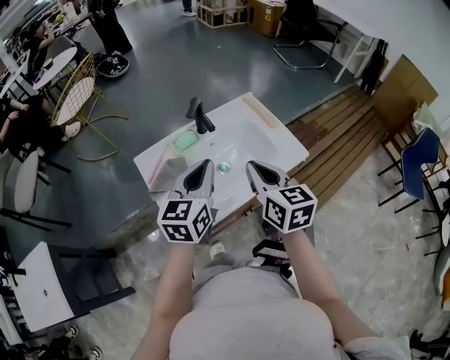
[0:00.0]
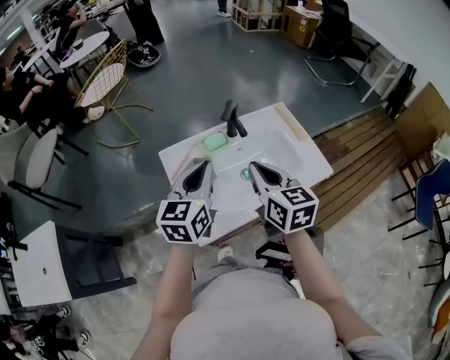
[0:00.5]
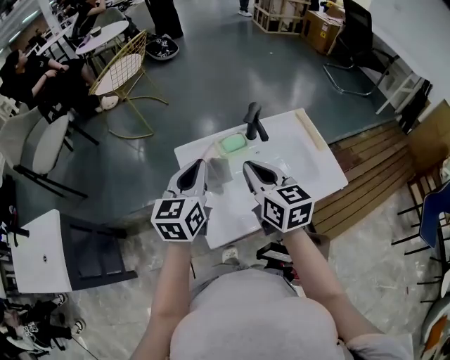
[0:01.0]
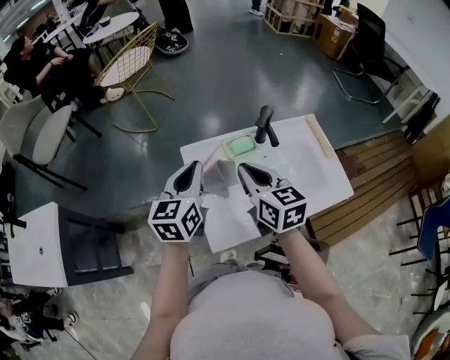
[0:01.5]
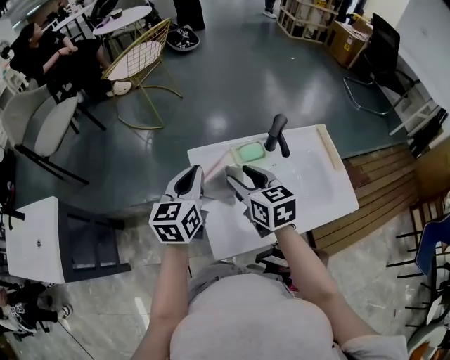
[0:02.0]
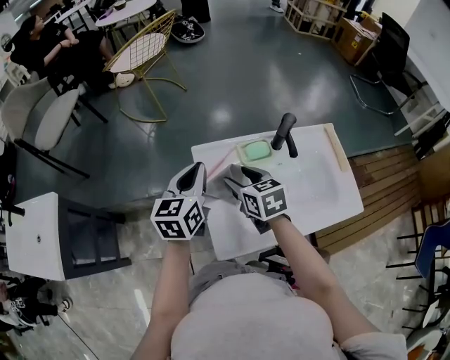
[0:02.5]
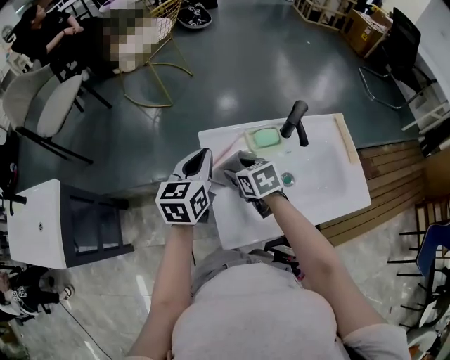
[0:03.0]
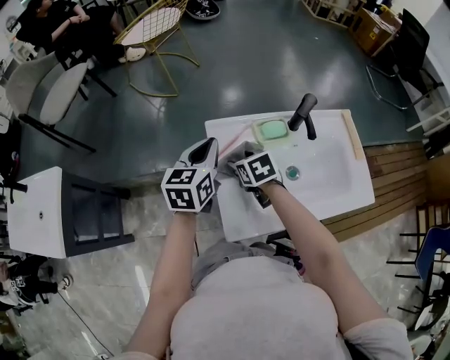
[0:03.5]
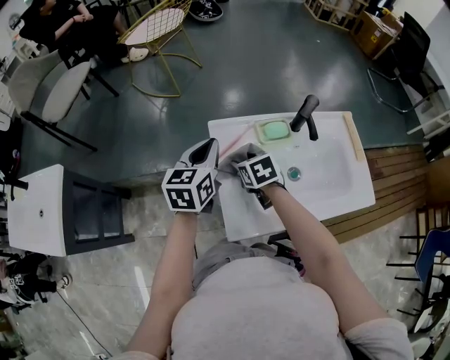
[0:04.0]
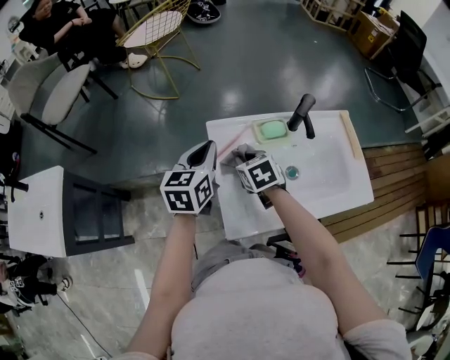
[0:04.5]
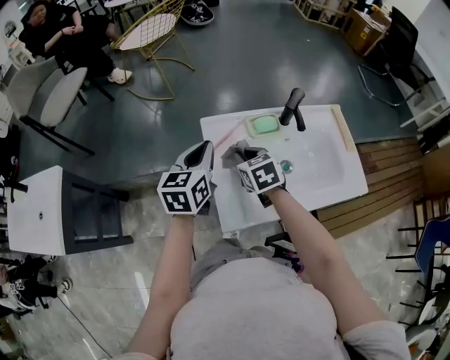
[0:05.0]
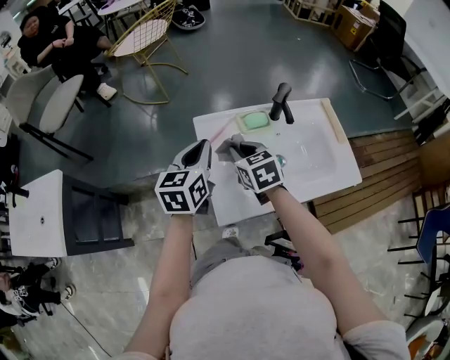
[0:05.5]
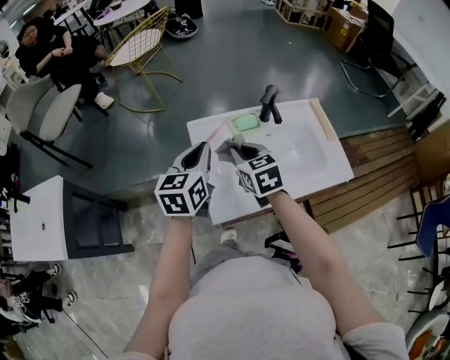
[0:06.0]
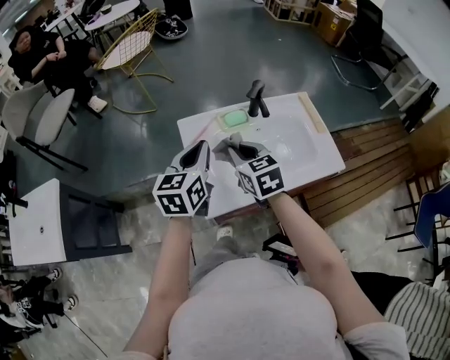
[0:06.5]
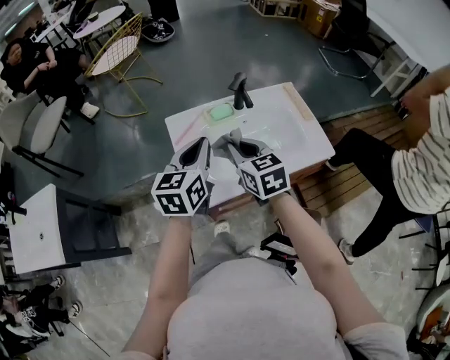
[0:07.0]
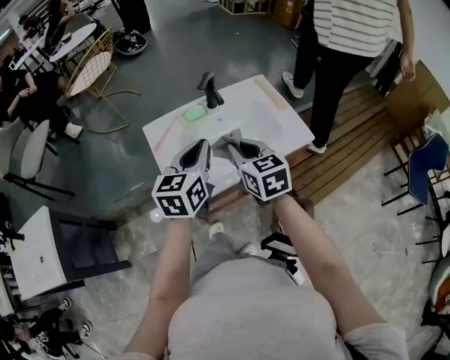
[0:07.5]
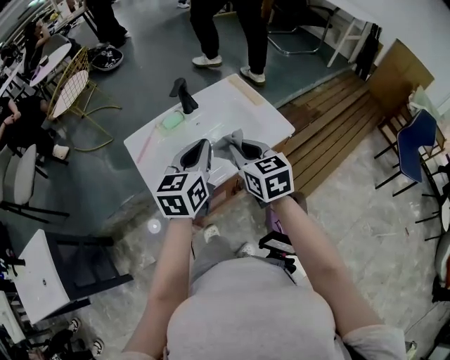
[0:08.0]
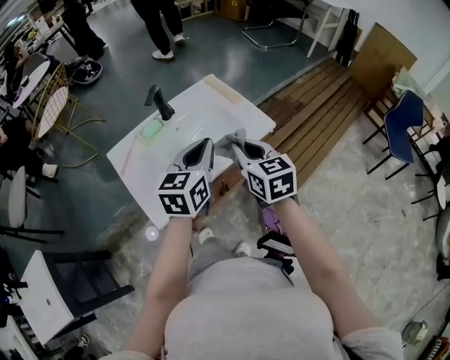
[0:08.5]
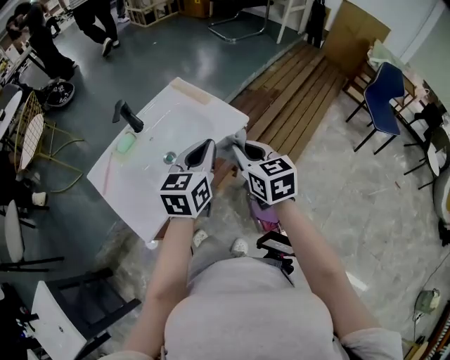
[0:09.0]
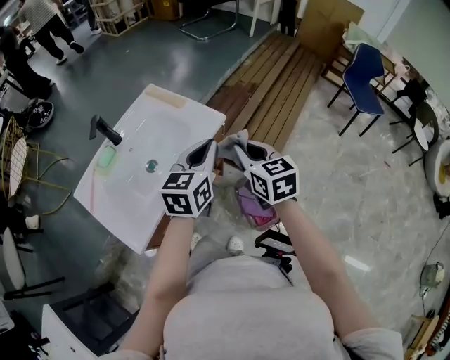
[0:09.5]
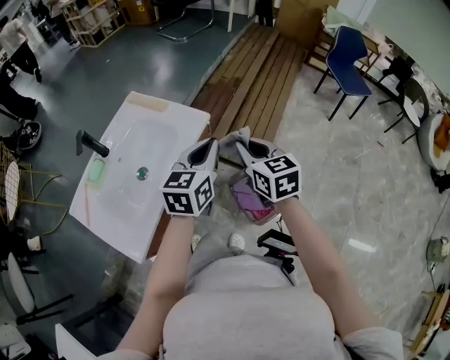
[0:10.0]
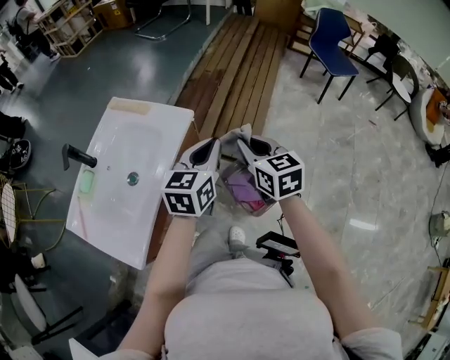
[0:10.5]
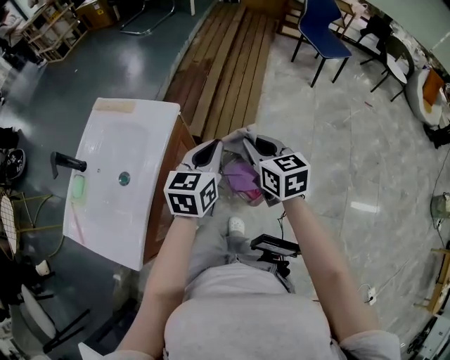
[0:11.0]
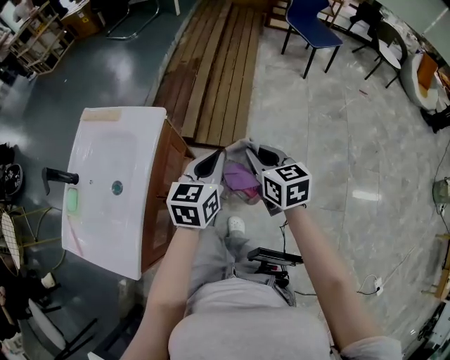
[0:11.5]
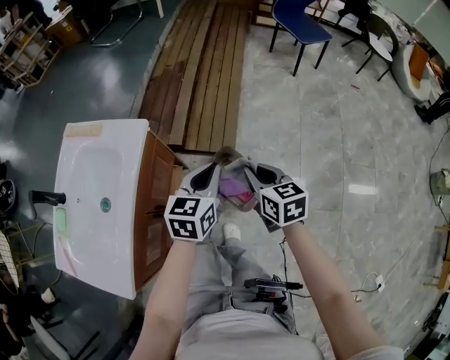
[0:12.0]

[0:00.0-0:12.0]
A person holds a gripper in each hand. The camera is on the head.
0.0 to 2.0 s: The right gripper shifts by approximately 25 cm, rotates approximately 30 degrees, and opens up. Meanwhile the left gripper moves roughly 25 cm, and rotates about 20 degrees.
2.0 to 4.0 s: The left gripper changes place by some 5 cm; the right gripper moves downward, approximately 15 cm, and turns by about 30 degrees.
4.0 to 6.0 s: The right gripper travels upward and backward by roughly 15 cm, swivels some 20 degrees, and closes. Meanwhile the left gripper moves backward and upward, roughly 10 cm.
6.0 to 8.0 s: The right gripper travels to the right and backward by roughly 25 cm, and changes its angle by approximately 20 degrees. Meanwhile the left gripper shifts about 20 cm to the right, and rotates about 20 degrees.
8.0 to 10.0 s: The right gripper ends up approximately 25 cm from where it was, and turns by roughly 30 degrees; the left gripper moves some 25 cm, and swivels some 30 degrees.
10.0 to 12.0 s: Both grippers travel together to the right and downward, approximately 20 cm. The left gripper turns by some 20 degrees. Meanwhile the right gripper swivels some 20 degrees.

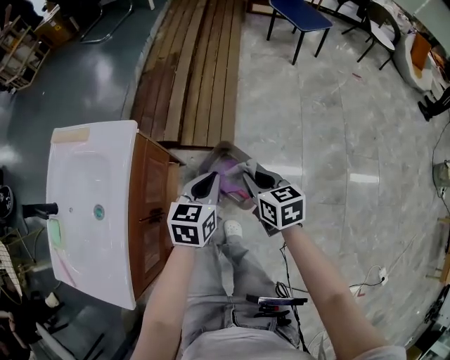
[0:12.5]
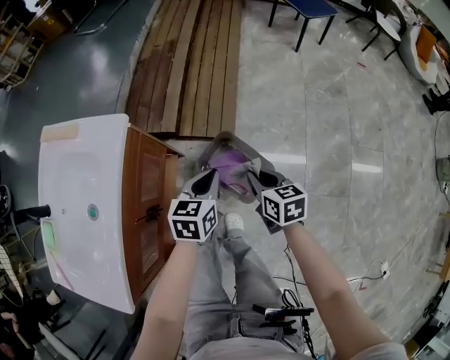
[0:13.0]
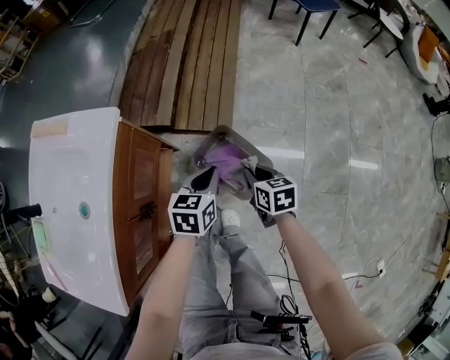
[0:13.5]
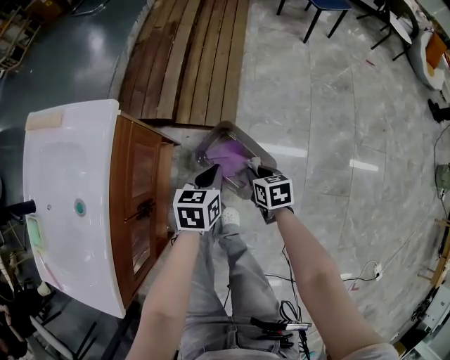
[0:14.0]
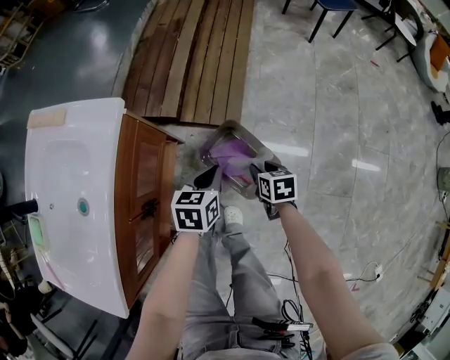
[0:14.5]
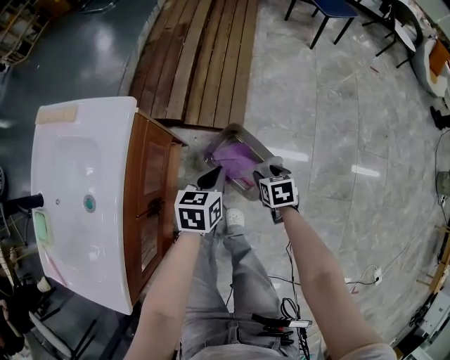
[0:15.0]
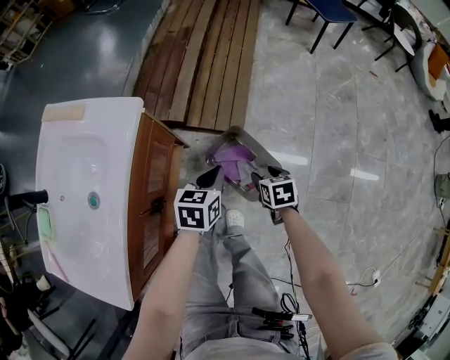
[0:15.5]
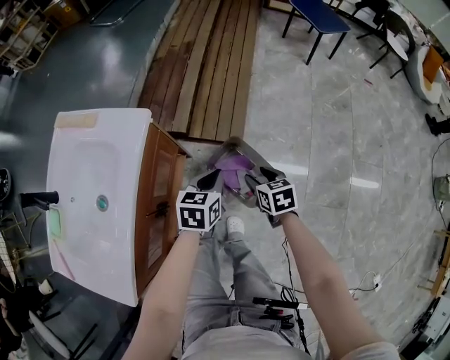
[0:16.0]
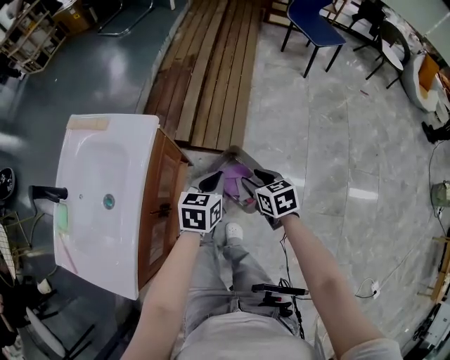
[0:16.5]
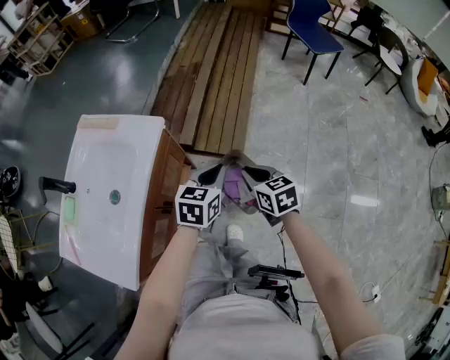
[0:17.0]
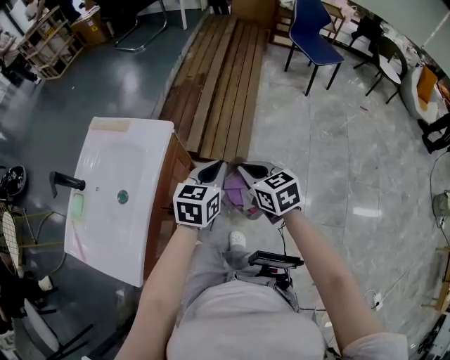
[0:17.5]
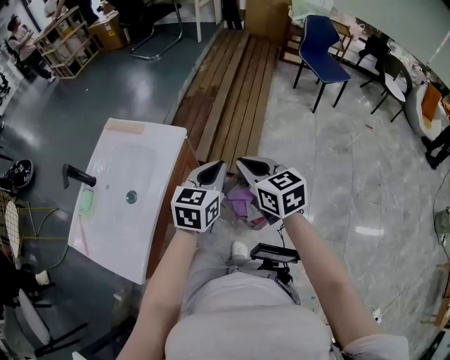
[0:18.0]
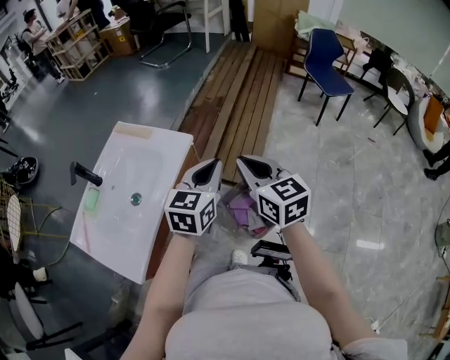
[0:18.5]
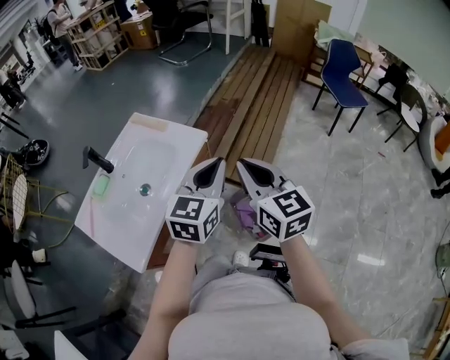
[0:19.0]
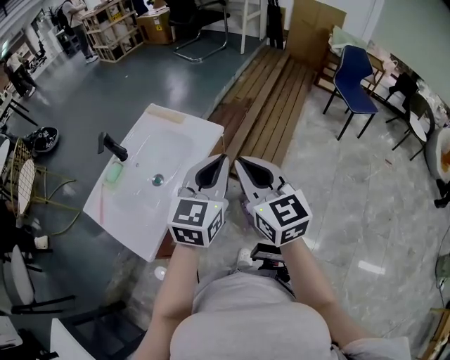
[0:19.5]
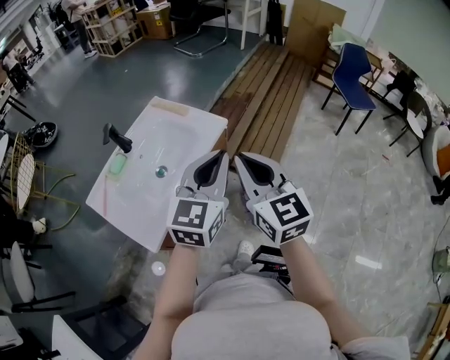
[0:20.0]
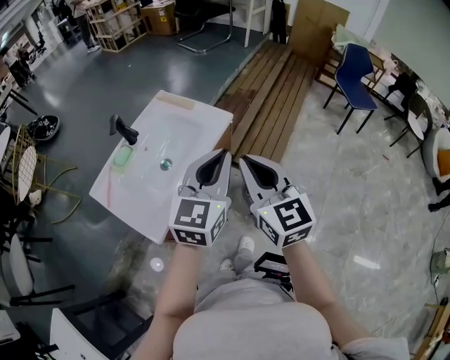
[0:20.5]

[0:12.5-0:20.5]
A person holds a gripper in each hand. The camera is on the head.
12.5 to 14.5 s: The grippers both shift downward by roughly 20 cm. The right gripper turns by approximately 20 degrees, and opens its fingers.
14.5 to 16.5 s: The grippers both shift upward by about 15 cm.
16.5 to 18.5 s: The grippers both shift upward by some 25 cm. The right gripper tips its fingers upward by about 30 degrees, and closes up. The left gripper turns by approximately 30 degrees.
18.5 to 20.5 s: Both grippers travel together to the left, backward and upward, approximately 20 cm.

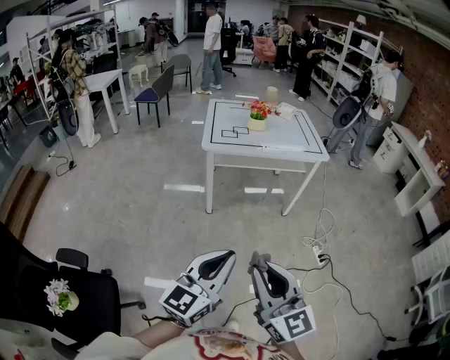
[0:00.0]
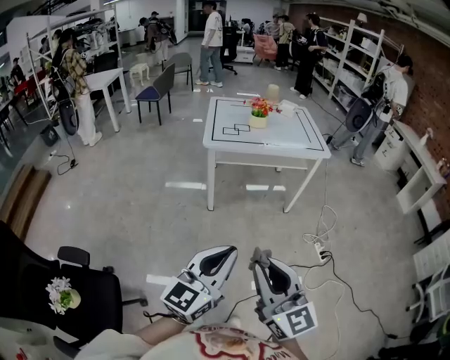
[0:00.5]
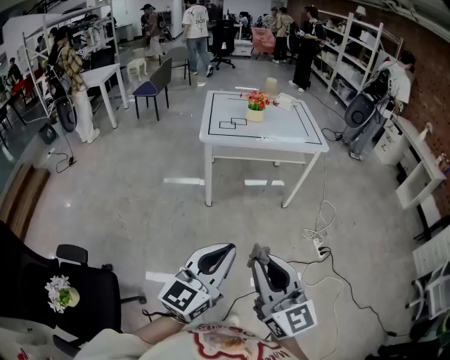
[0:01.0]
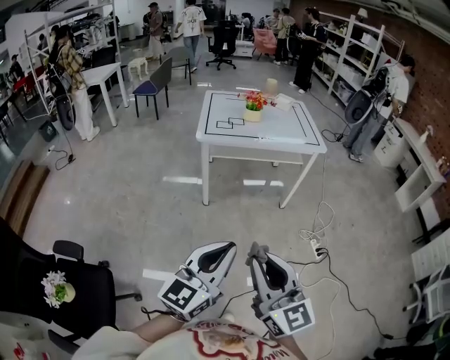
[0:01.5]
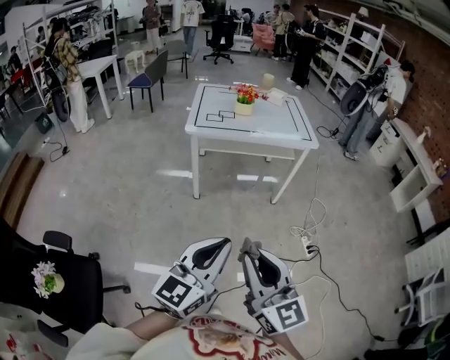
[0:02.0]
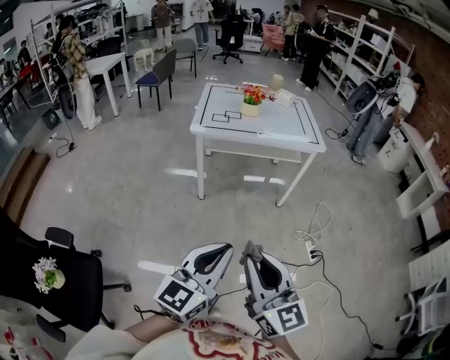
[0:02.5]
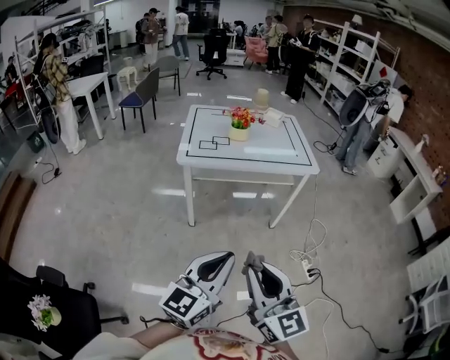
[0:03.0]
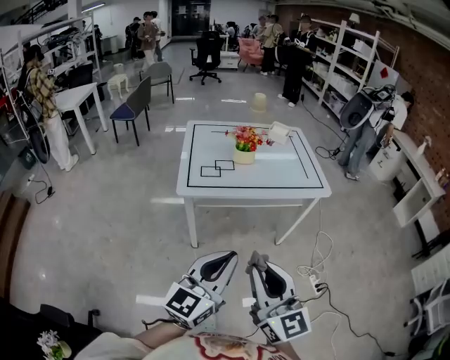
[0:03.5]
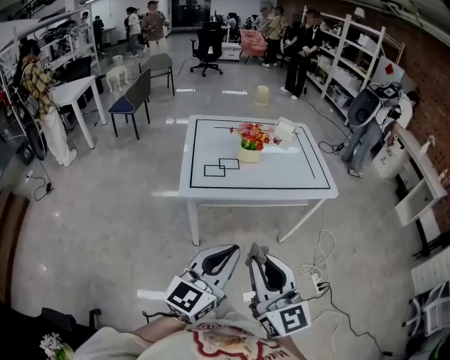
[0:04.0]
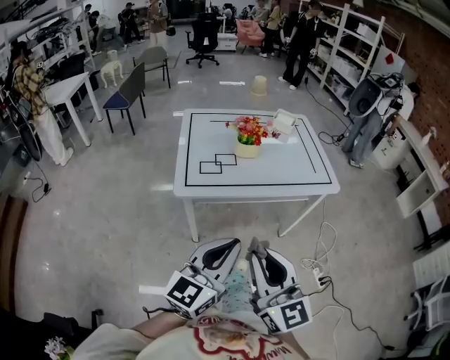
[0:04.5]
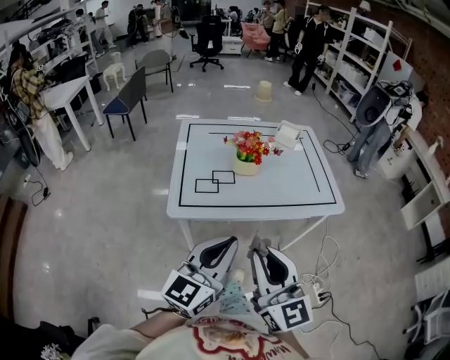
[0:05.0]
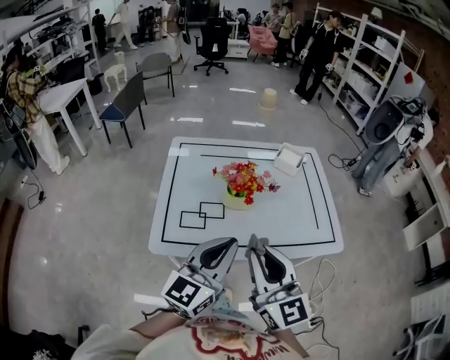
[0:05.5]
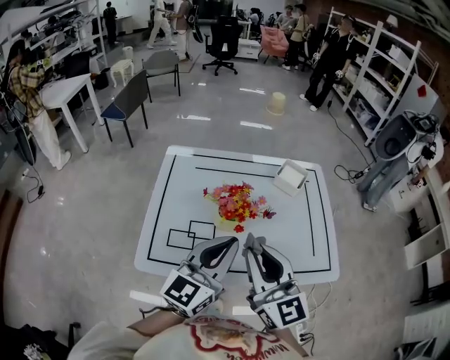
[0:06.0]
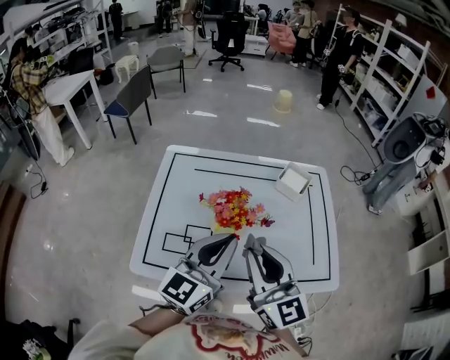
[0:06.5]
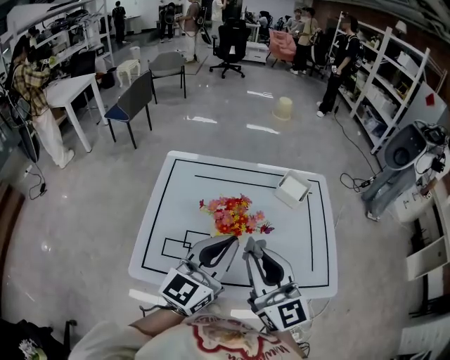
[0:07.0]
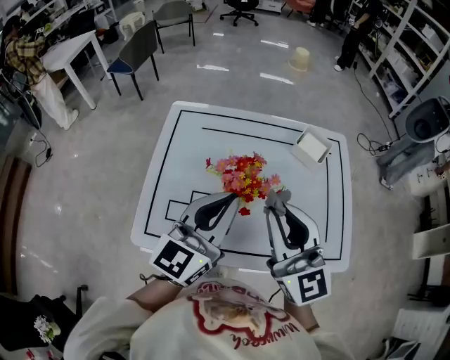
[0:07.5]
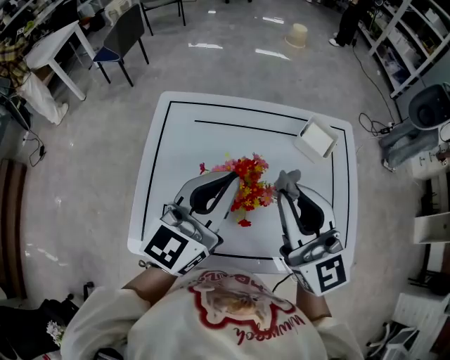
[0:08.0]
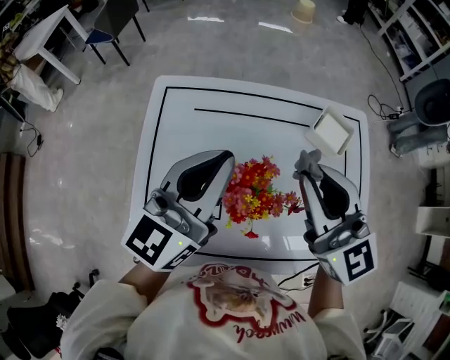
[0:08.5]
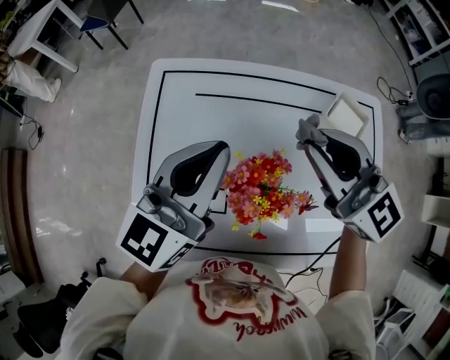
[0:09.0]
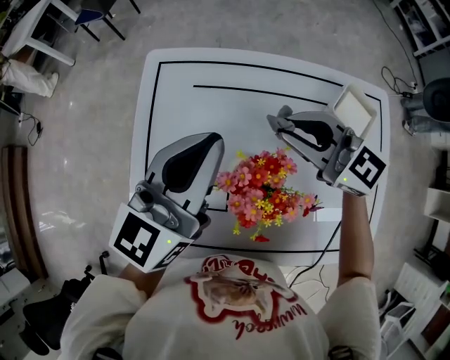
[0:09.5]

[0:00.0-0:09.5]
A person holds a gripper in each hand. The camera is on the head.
0.0 to 2.0 s: The two grippers go some 10 cm to the right.
2.0 to 4.0 s: The grippers both shift forward by some 35 cm.
4.0 to 5.5 s: The grippers both shift forward by roughly 30 cm.
5.5 to 7.5 s: Both grippers travel together forward, some 20 cm.
7.5 to 9.5 s: The left gripper moves forward, approximately 15 cm. Meanwhile the right gripper moves forward and downward, some 25 cm, and turns by roughly 40 degrees.
